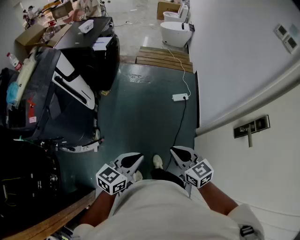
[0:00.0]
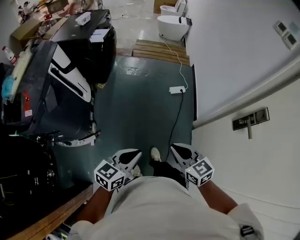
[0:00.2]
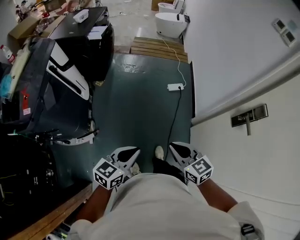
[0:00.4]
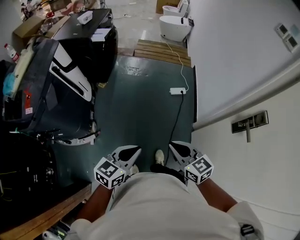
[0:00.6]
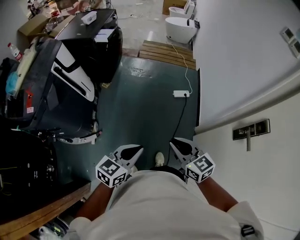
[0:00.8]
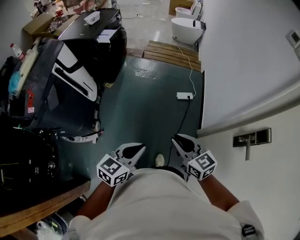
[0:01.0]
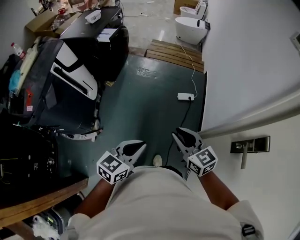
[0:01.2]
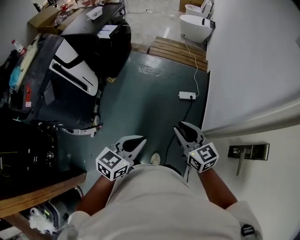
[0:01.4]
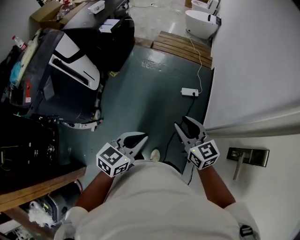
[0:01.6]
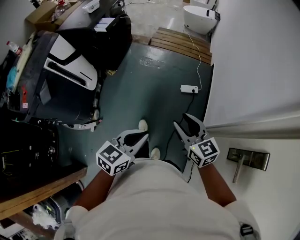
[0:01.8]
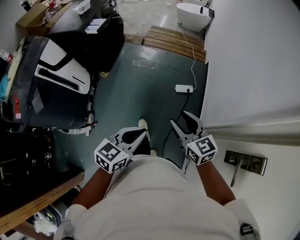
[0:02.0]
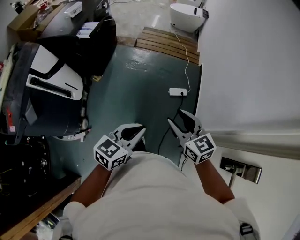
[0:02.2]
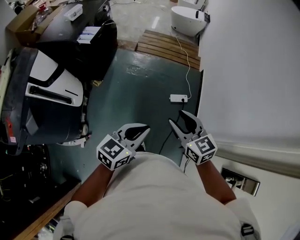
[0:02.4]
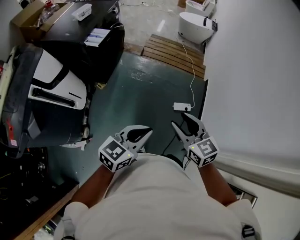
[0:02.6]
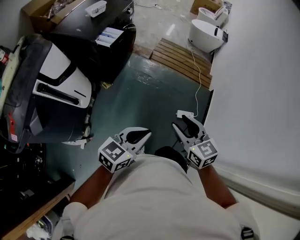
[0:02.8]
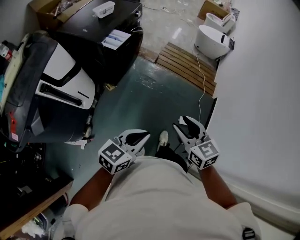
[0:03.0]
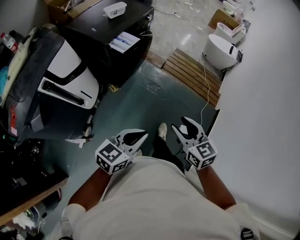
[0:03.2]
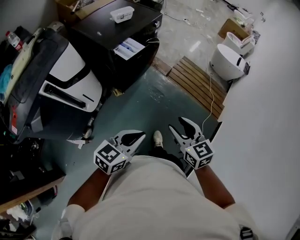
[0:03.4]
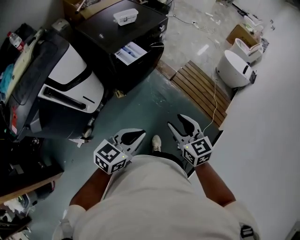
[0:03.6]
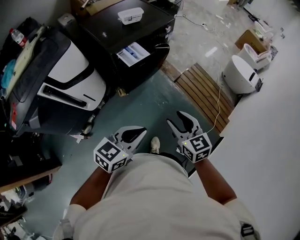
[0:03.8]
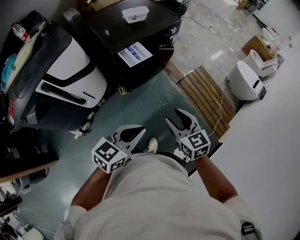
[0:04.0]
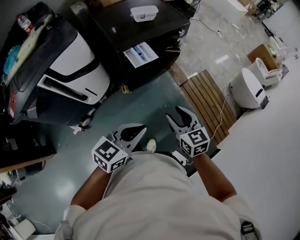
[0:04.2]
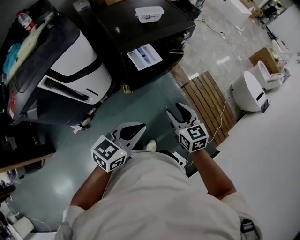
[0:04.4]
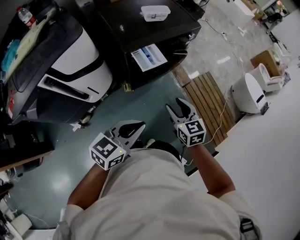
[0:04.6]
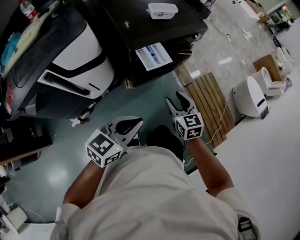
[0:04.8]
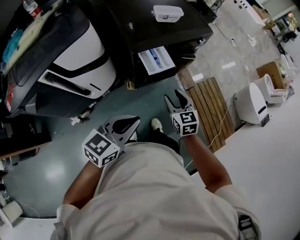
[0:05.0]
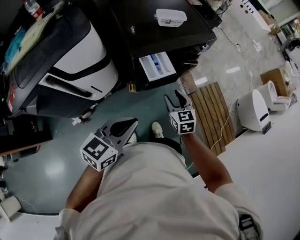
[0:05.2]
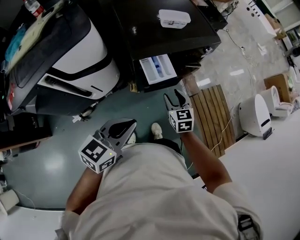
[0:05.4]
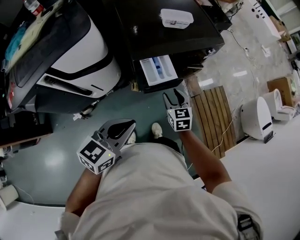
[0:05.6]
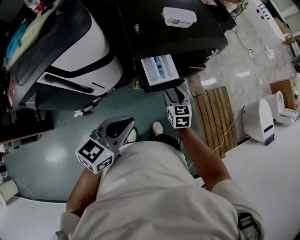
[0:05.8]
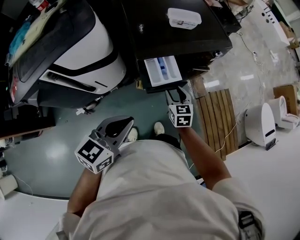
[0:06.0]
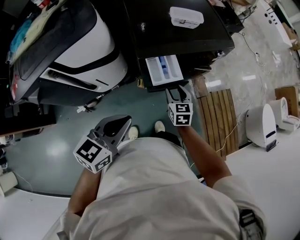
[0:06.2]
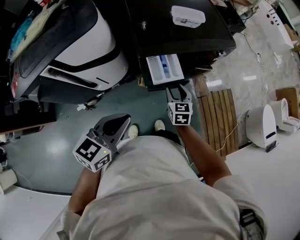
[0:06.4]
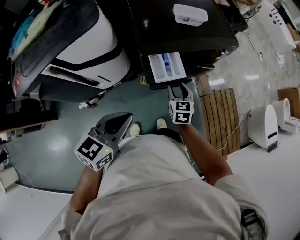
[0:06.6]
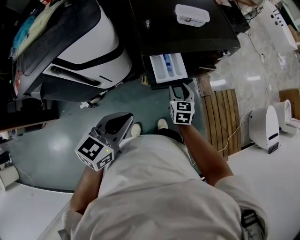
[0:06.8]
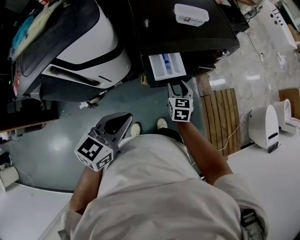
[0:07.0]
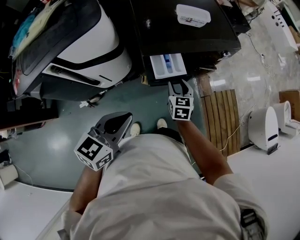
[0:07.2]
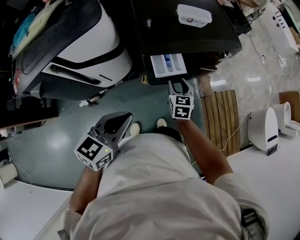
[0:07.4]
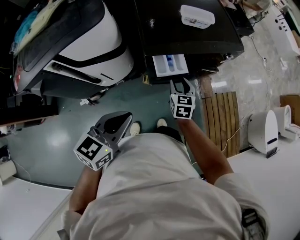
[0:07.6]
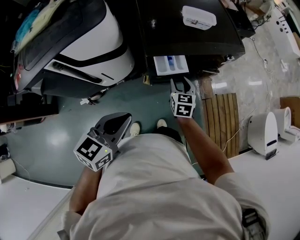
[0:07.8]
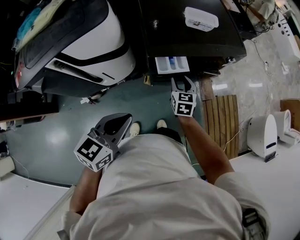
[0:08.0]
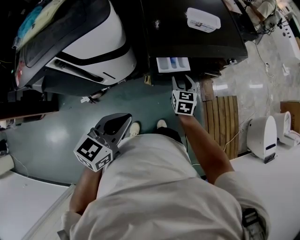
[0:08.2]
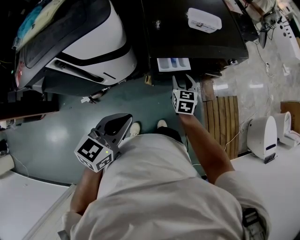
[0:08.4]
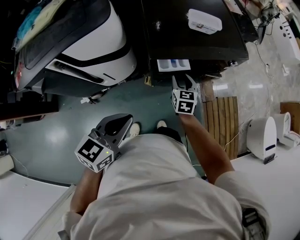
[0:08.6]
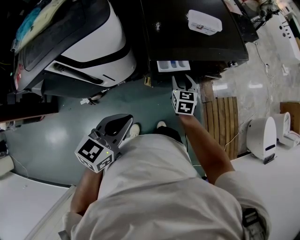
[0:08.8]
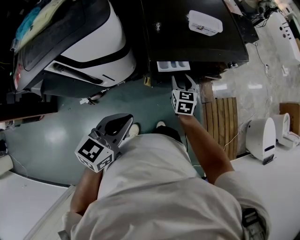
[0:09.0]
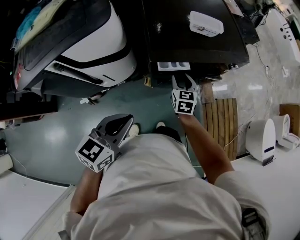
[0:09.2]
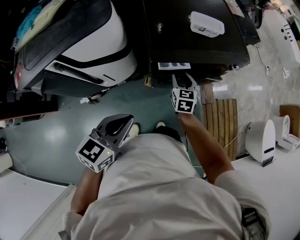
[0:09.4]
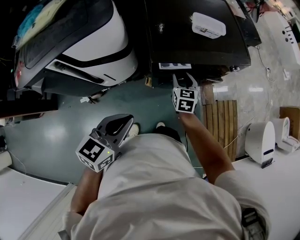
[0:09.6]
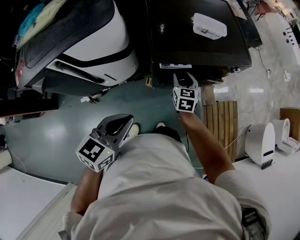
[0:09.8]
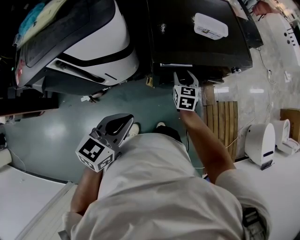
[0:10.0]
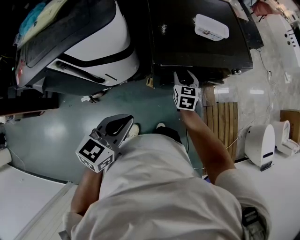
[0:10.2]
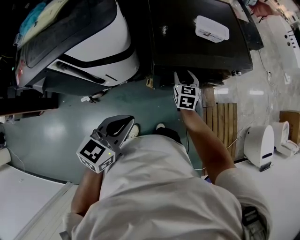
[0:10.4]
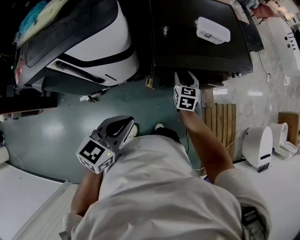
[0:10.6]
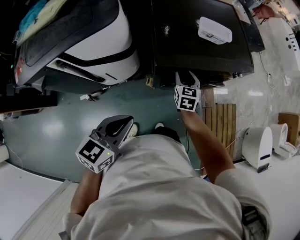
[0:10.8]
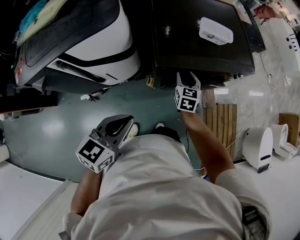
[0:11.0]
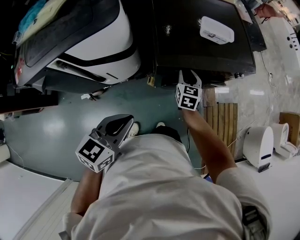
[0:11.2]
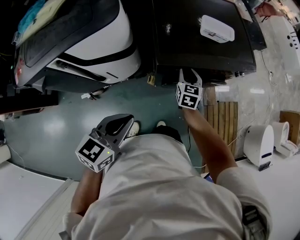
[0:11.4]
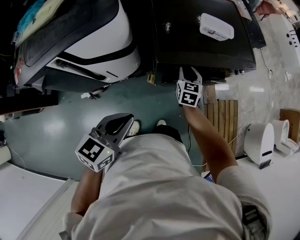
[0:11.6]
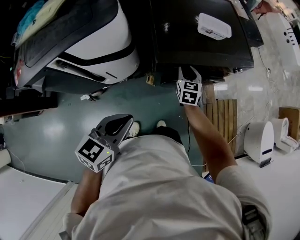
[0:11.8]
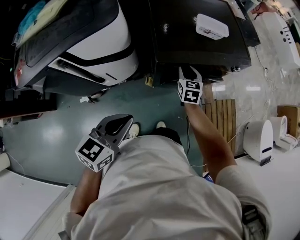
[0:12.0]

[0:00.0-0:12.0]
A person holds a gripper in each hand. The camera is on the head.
0:00.0 to 0:01.6: The left gripper travels to the right and forward by approximately 20 cm, while the right gripper shifts about 20 cm forward and to the right, and opens up.
0:01.6 to 0:03.0: The right gripper shifts about 35 cm forward and to the left, while the left gripper shifts some 30 cm forward.
0:03.0 to 0:04.4: The right gripper shifts by roughly 35 cm, and rotates roughly 30 degrees. Meanwhile the left gripper ends up roughly 30 cm from where it was, and turns by some 30 degrees.
0:04.4 to 0:06.0: The right gripper shifts about 25 cm forward and downward, while the left gripper goes some 15 cm forward and to the left, and swivels some 20 degrees.
0:06.0 to 0:07.6: The grippers make only small movements.
0:07.6 to 0:09.0: The right gripper moves roughly 5 cm.
0:09.0 to 0:12.0: The grippers make only small movements.

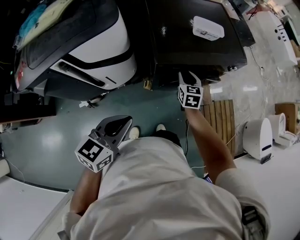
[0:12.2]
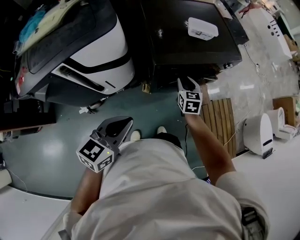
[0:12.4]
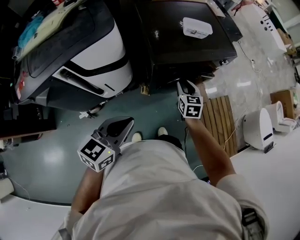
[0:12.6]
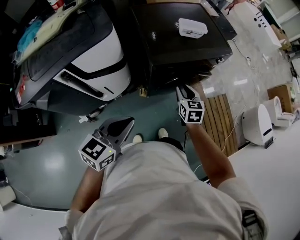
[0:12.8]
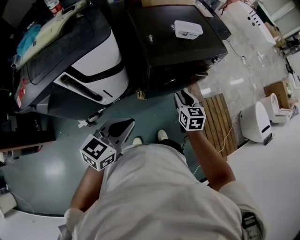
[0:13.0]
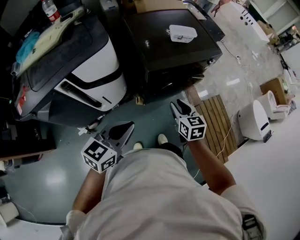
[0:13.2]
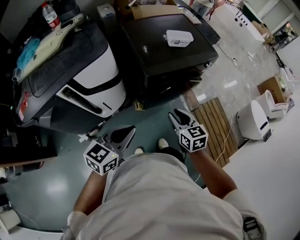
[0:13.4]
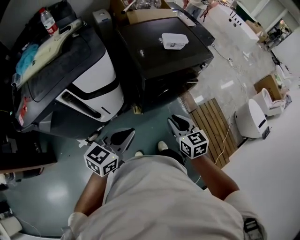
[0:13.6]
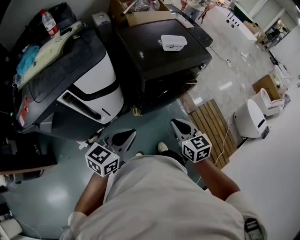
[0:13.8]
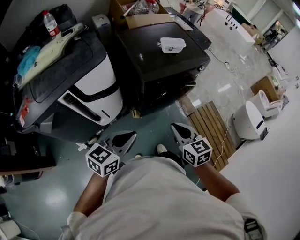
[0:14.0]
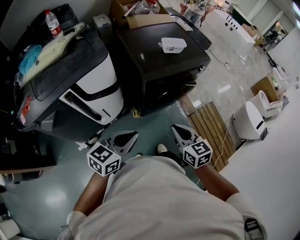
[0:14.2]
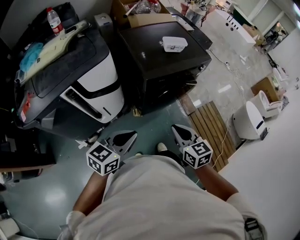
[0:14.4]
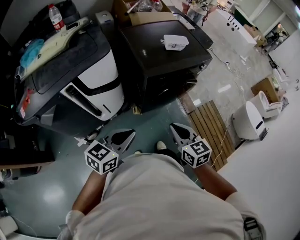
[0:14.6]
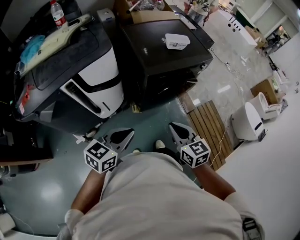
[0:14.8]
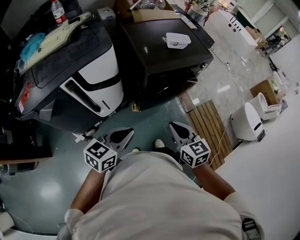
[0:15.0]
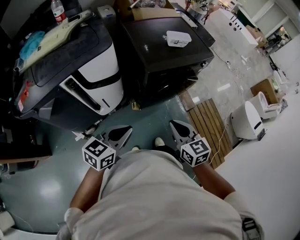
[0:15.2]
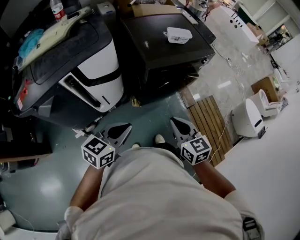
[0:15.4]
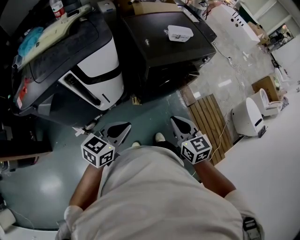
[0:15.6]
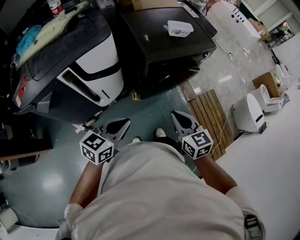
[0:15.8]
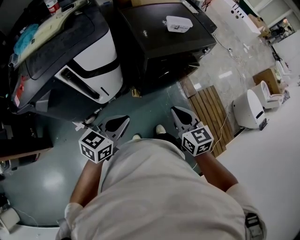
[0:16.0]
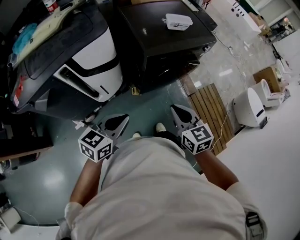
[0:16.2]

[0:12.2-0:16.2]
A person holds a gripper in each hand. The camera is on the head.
0:12.2 to 0:13.6: The left gripper heads backward, covering some 5 cm. Meanwhile the right gripper is displaced backward and upward by about 30 cm.
0:13.6 to 0:14.8: The right gripper shifts some 5 cm backward.
0:14.8 to 0:16.2: The grippers stay close to where they were, moving slightly.

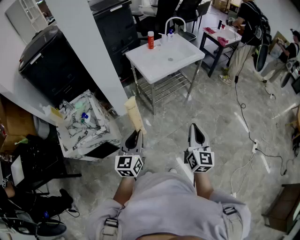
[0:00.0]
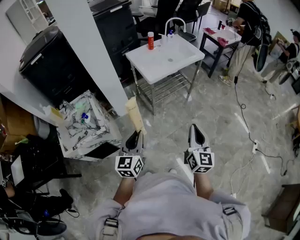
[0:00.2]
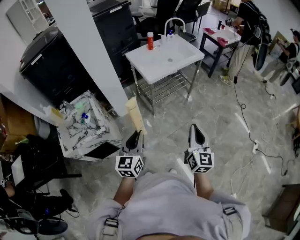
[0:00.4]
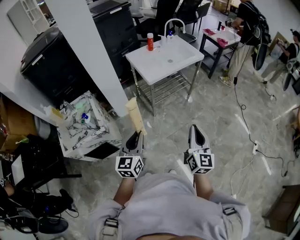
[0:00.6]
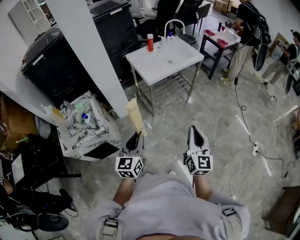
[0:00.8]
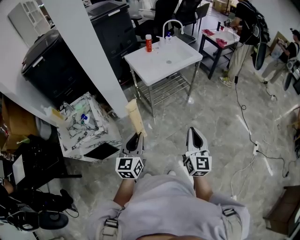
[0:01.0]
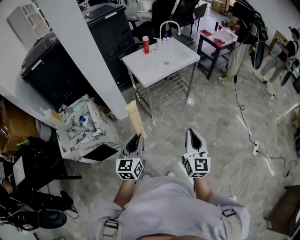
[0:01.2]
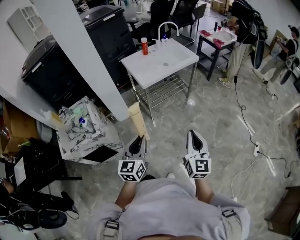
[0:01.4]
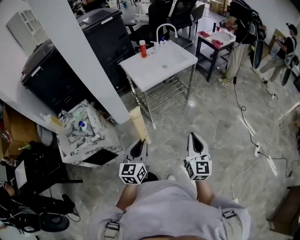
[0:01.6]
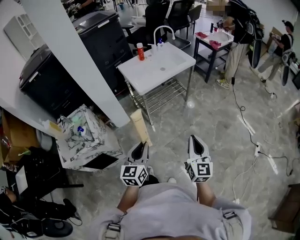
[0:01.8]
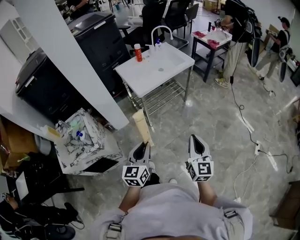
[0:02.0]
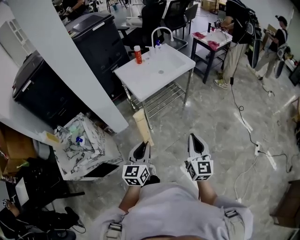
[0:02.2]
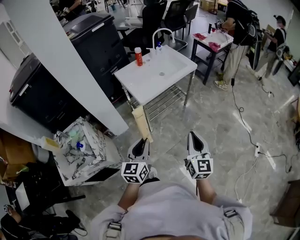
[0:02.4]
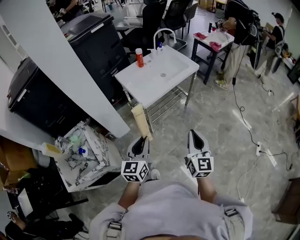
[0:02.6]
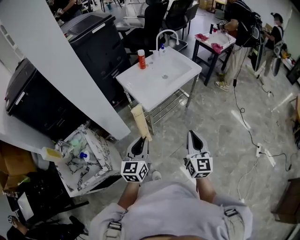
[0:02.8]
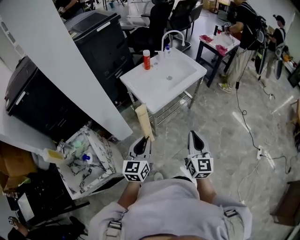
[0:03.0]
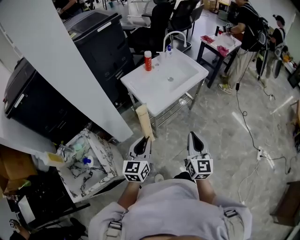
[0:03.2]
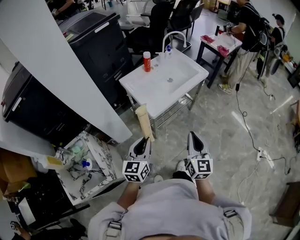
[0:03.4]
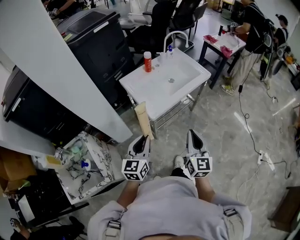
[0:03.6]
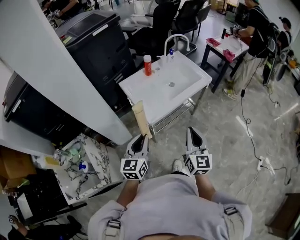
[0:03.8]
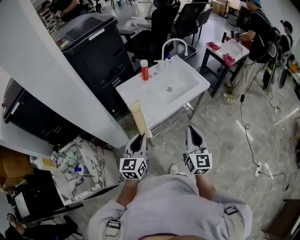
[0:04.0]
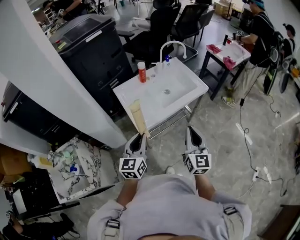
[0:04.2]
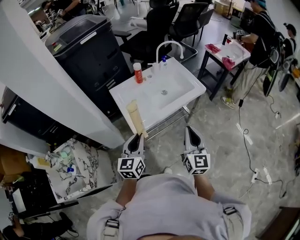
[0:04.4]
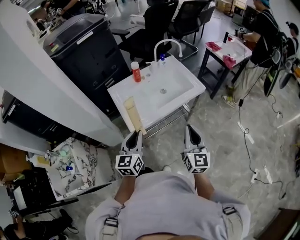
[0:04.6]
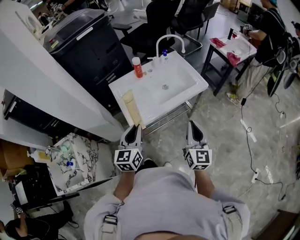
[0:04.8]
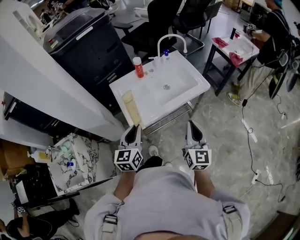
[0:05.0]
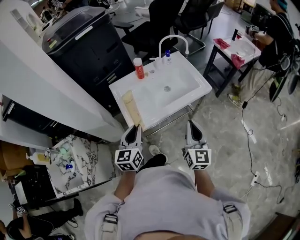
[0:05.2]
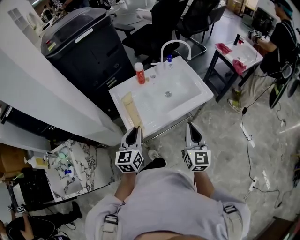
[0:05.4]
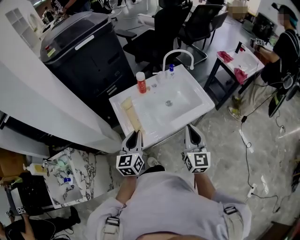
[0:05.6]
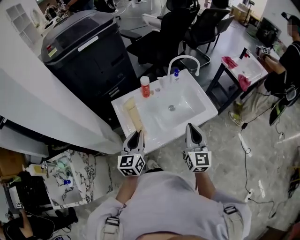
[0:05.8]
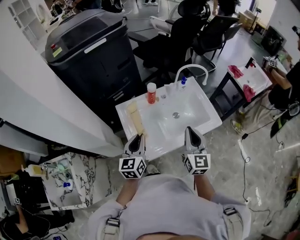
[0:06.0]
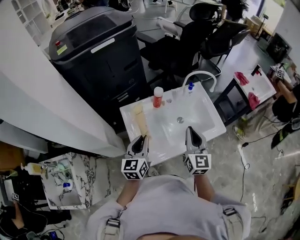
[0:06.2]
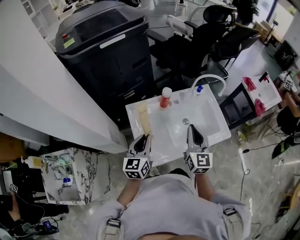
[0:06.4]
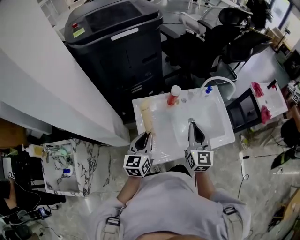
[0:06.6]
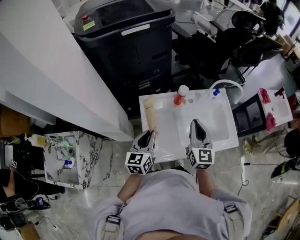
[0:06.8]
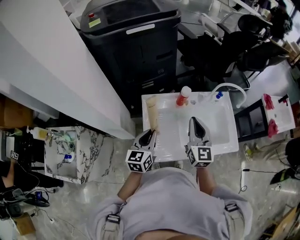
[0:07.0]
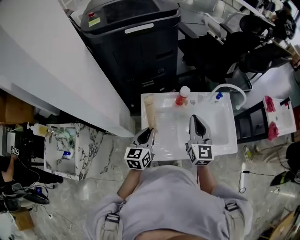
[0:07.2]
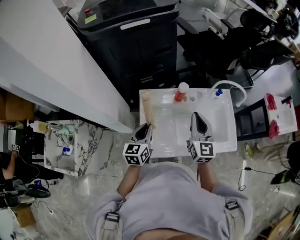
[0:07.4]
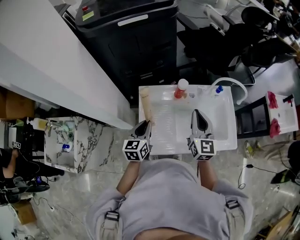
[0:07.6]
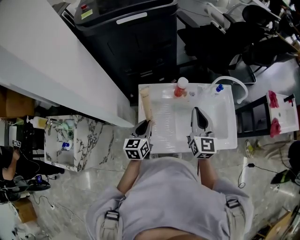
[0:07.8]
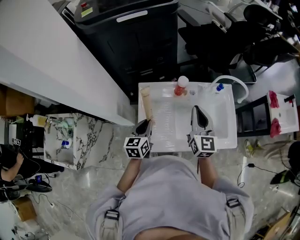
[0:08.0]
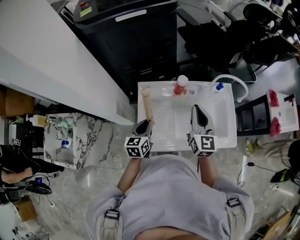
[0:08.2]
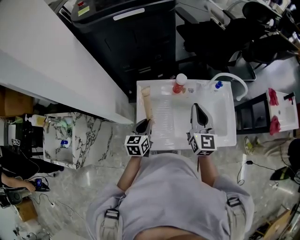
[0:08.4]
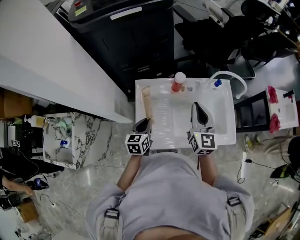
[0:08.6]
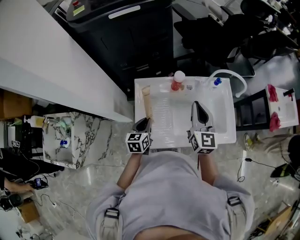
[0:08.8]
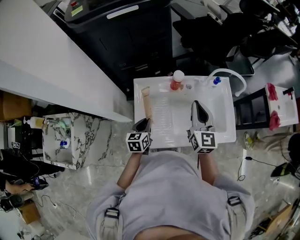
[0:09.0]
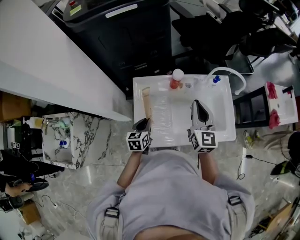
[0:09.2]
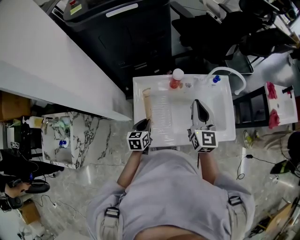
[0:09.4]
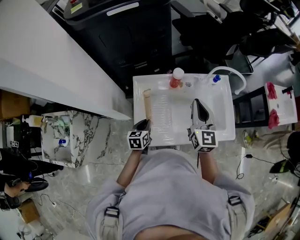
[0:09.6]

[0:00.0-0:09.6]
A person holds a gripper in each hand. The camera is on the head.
0:00.0 to 0:01.6: The grippers both shift to the right by some 10 cm.
0:01.6 to 0:03.2: Both grippers travel together forward and to the left, roughly 30 cm.
0:03.2 to 0:04.8: Both grippers move forward and to the right, approximately 25 cm.
0:04.8 to 0:06.4: The left gripper shifts some 25 cm forward. The right gripper goes approximately 35 cm forward and to the left.
0:06.4 to 0:08.0: The right gripper travels forward by approximately 10 cm, while the left gripper shifts about 5 cm downward.
0:08.0 to 0:09.6: The left gripper heads downward, covering roughly 10 cm.
